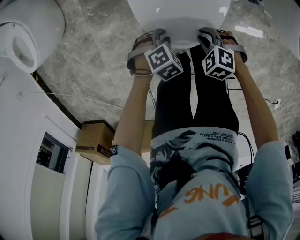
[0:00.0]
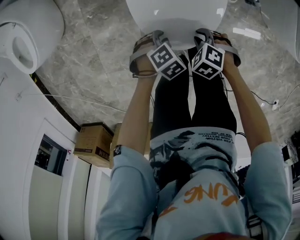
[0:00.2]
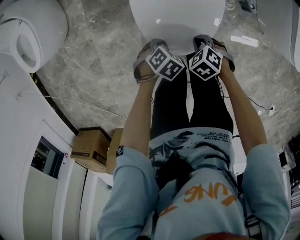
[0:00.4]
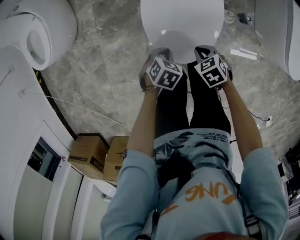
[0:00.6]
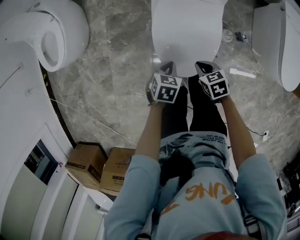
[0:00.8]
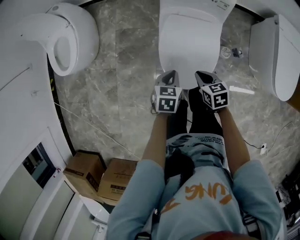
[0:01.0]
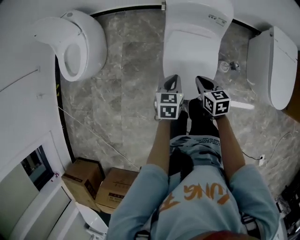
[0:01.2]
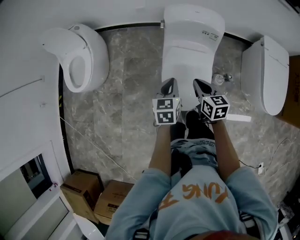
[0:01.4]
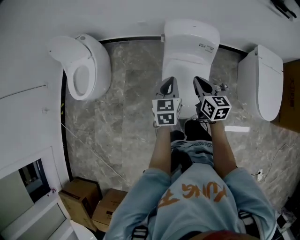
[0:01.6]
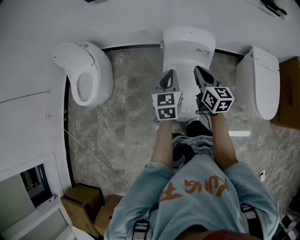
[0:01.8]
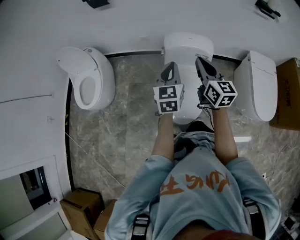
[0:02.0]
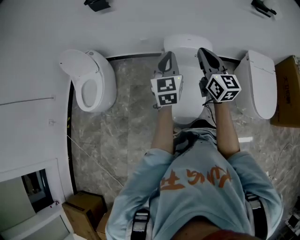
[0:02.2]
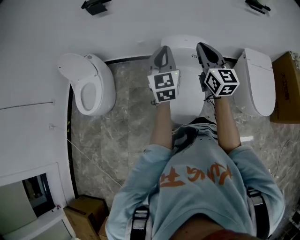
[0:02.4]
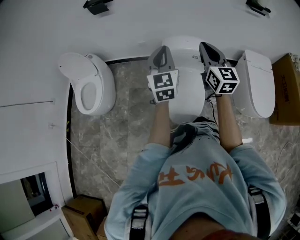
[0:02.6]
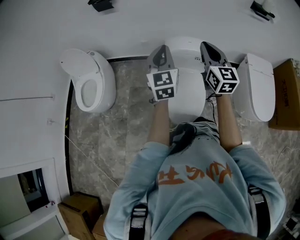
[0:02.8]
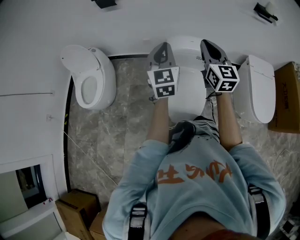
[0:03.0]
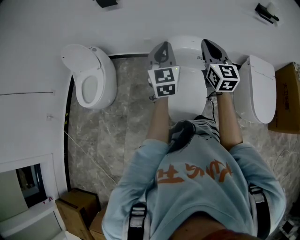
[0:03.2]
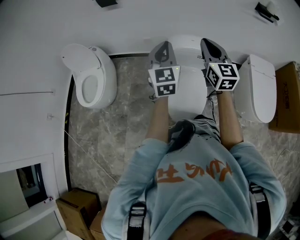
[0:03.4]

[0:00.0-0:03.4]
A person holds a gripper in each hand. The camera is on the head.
0:00.0 to 0:01.6: The grippers both shift upward by some 50 cm. The right gripper points its fingers approximately 50 degrees further upward. Meanwhile the left gripper points its fingers about 50 degrees further upward.
0:01.6 to 0:03.4: The grippers both shift upward by roughly 25 cm. The left gripper swivels about 30 degrees. Meanwhile the right gripper swivels about 30 degrees.

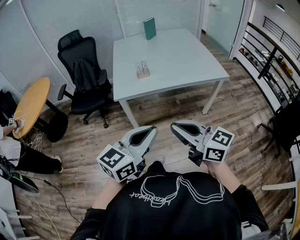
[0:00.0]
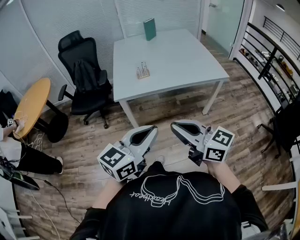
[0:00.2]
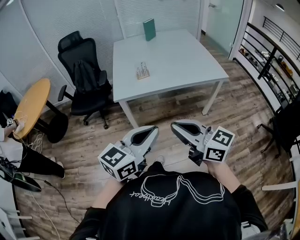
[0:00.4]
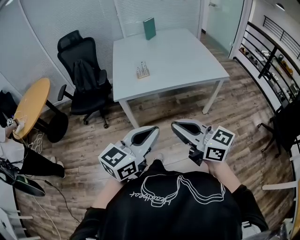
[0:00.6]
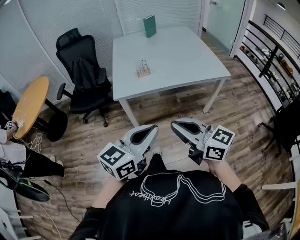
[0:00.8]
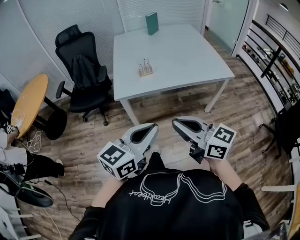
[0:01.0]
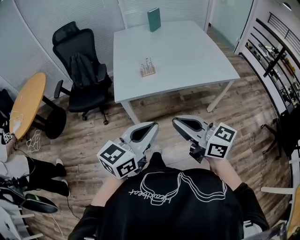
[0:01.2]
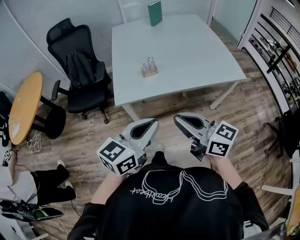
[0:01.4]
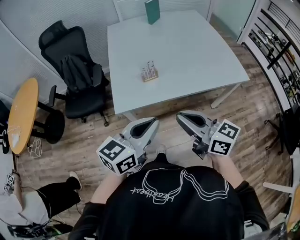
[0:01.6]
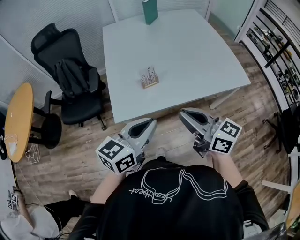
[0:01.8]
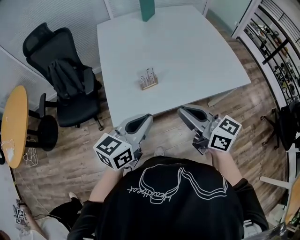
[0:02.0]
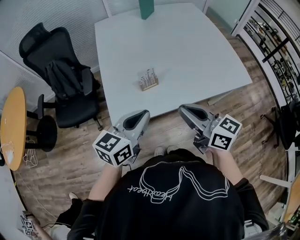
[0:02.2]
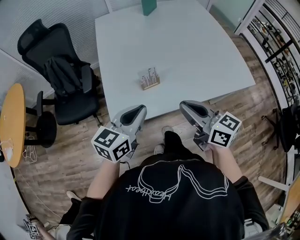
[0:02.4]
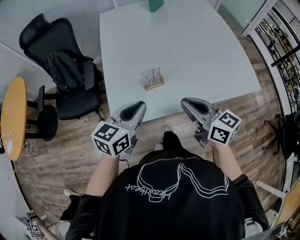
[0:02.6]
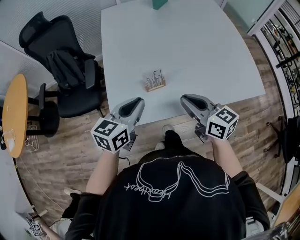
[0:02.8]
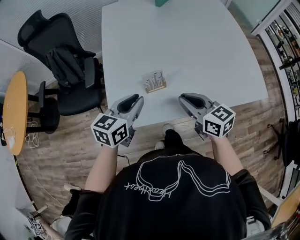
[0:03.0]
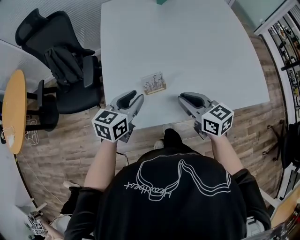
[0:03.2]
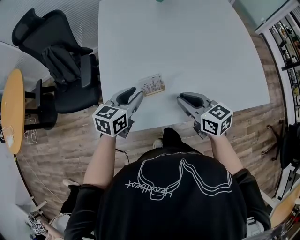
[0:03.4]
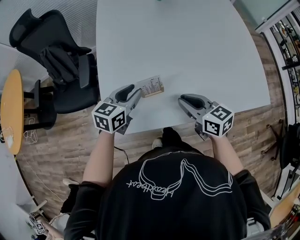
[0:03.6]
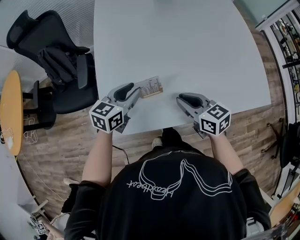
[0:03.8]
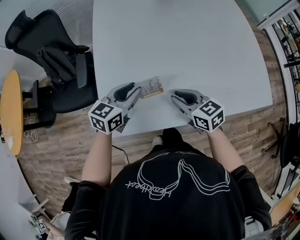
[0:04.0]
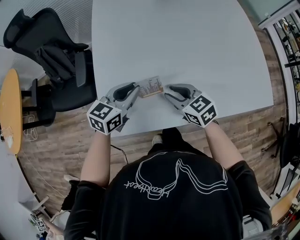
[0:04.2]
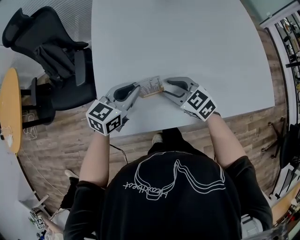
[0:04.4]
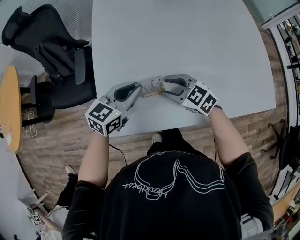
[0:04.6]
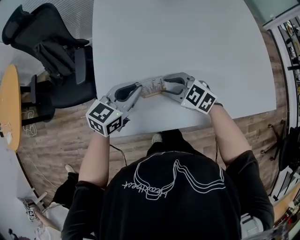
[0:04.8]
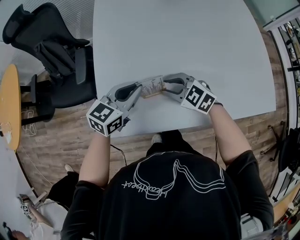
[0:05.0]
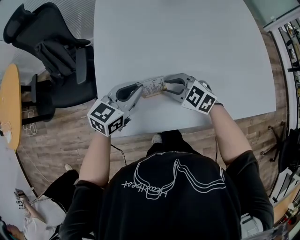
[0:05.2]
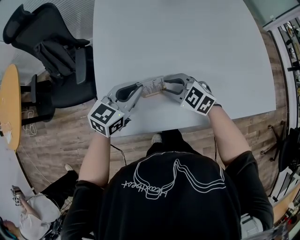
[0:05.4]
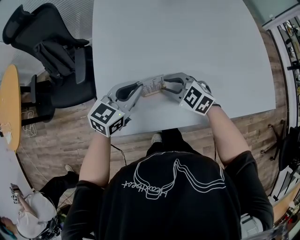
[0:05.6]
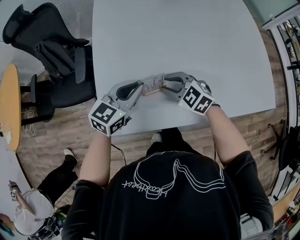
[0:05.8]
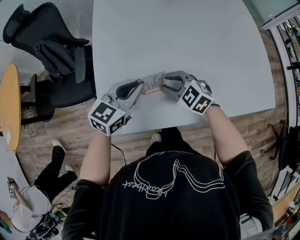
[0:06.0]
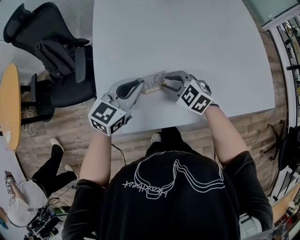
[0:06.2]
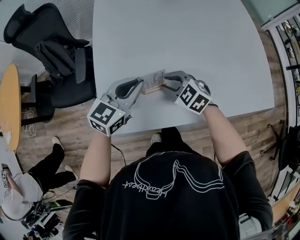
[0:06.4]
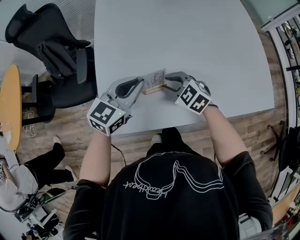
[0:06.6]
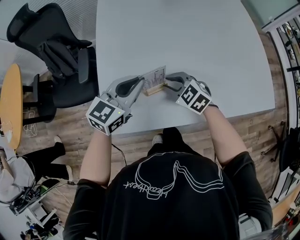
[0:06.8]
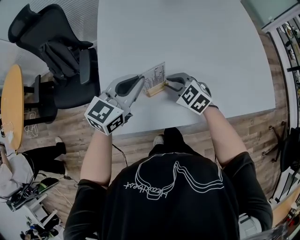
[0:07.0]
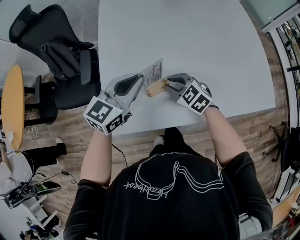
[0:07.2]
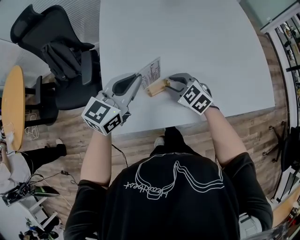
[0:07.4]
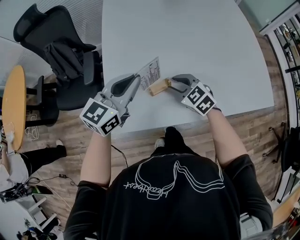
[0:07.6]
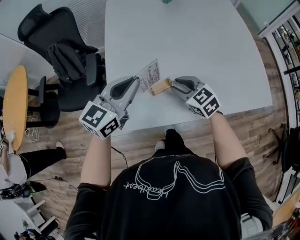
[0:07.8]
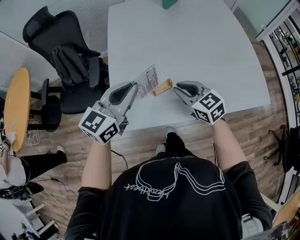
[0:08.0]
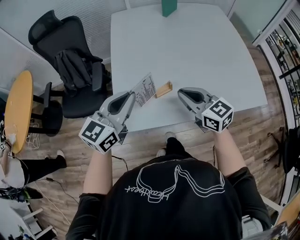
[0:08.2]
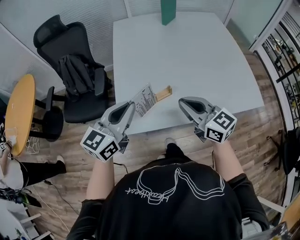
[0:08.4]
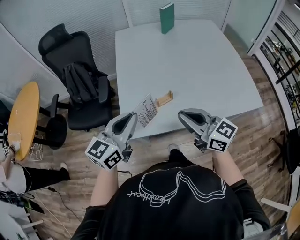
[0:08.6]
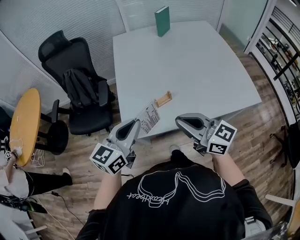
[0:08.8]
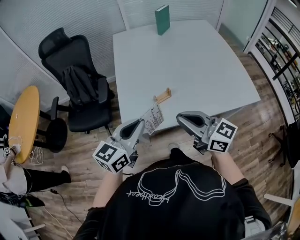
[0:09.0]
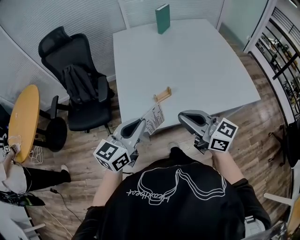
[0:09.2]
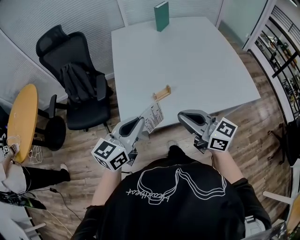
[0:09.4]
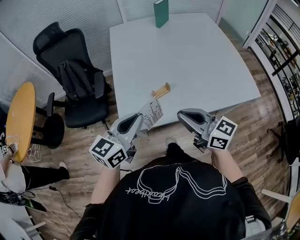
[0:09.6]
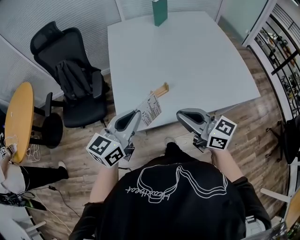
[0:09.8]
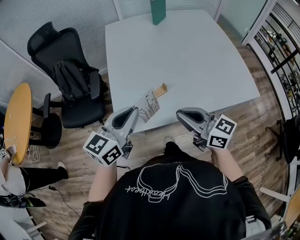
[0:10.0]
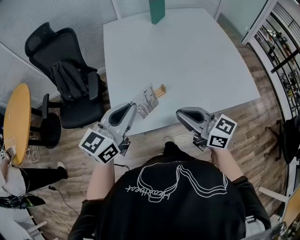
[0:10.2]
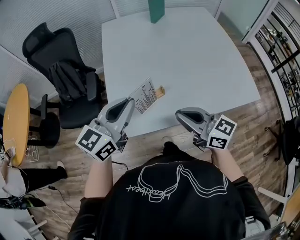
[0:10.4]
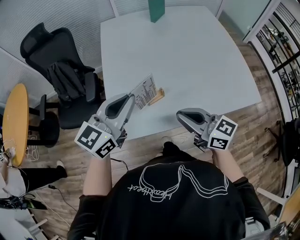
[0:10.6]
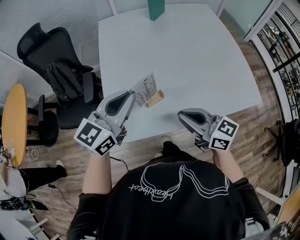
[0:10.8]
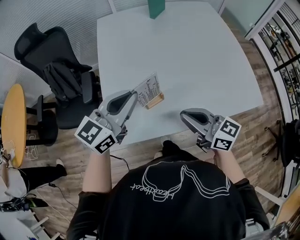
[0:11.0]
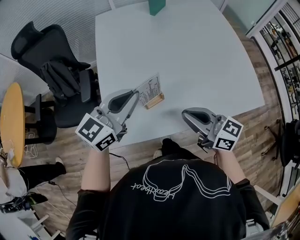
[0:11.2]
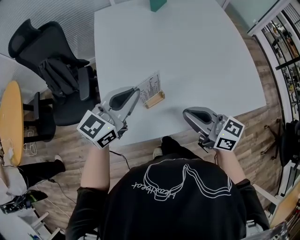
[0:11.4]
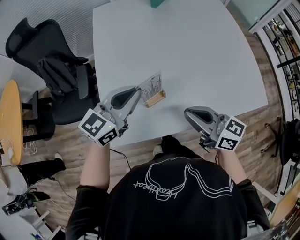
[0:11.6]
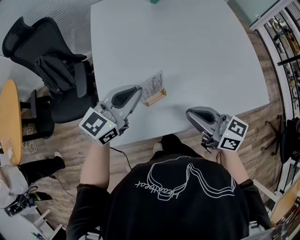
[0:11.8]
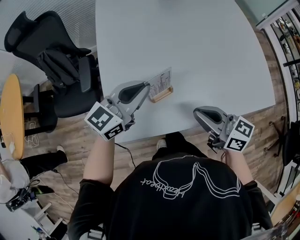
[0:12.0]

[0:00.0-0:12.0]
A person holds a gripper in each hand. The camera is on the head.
0:00.0 to 0:01.6: Both grippers travel together forward, about 25 cm.
0:01.6 to 0:03.0: Both grippers move forward and downward, about 30 cm.
0:03.0 to 0:04.4: The left gripper travels forward and downward by roughly 10 cm. The right gripper is displaced downward and forward by some 15 cm, turns by roughly 30 degrees, and opens up.
0:04.4 to 0:06.0: The grippers stay close to where they were, moving slightly.
0:06.0 to 0:07.6: The left gripper shifts about 10 cm upward.
0:07.6 to 0:09.0: The right gripper shifts roughly 30 cm backward and upward, tips its fingers upward by approximately 40 degrees, and closes up. Meanwhile the left gripper travels backward by approximately 20 cm.
0:09.0 to 0:10.4: The right gripper moves forward, approximately 5 cm. The left gripper goes about 10 cm forward.
0:10.4 to 0:12.0: The right gripper goes approximately 10 cm forward and downward. The left gripper travels forward and downward by approximately 15 cm.

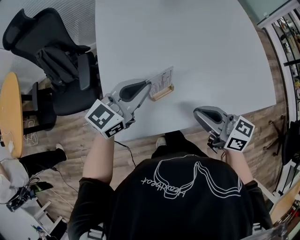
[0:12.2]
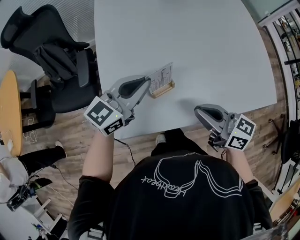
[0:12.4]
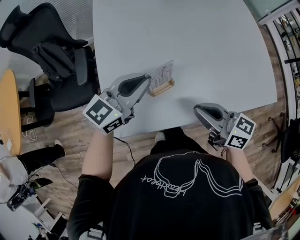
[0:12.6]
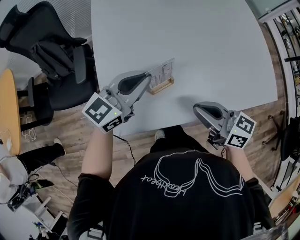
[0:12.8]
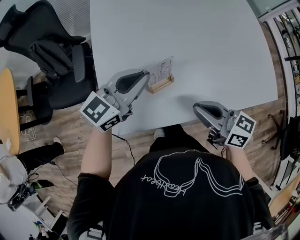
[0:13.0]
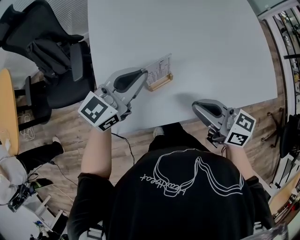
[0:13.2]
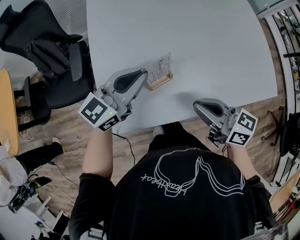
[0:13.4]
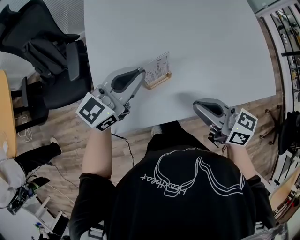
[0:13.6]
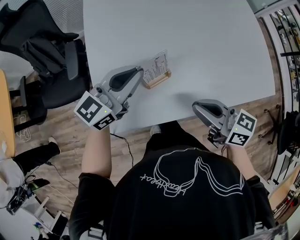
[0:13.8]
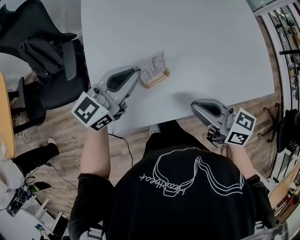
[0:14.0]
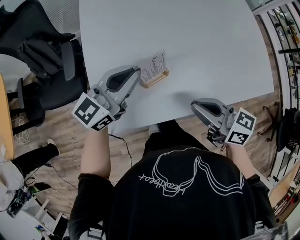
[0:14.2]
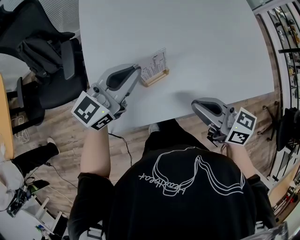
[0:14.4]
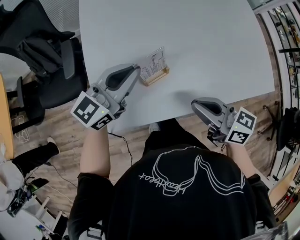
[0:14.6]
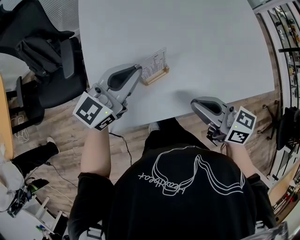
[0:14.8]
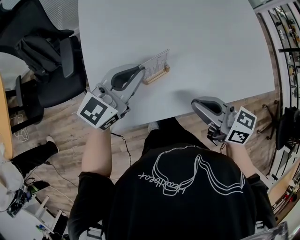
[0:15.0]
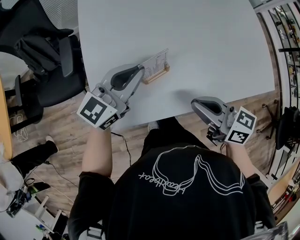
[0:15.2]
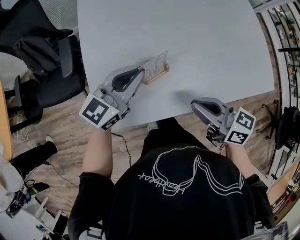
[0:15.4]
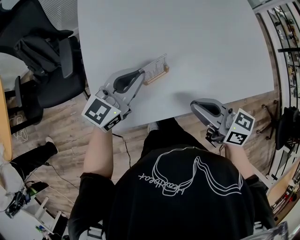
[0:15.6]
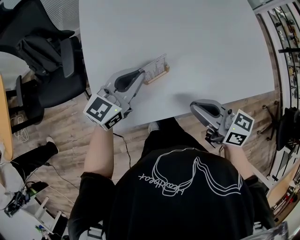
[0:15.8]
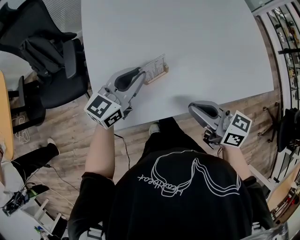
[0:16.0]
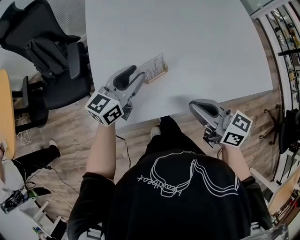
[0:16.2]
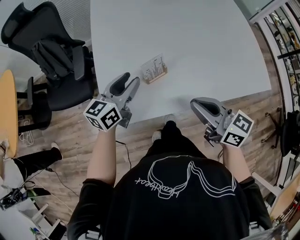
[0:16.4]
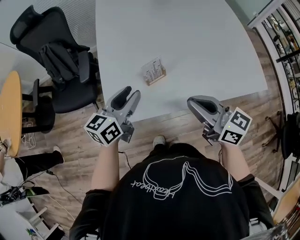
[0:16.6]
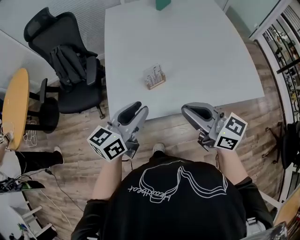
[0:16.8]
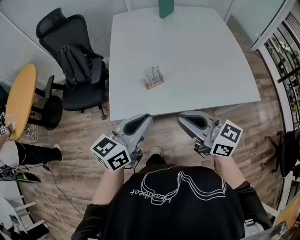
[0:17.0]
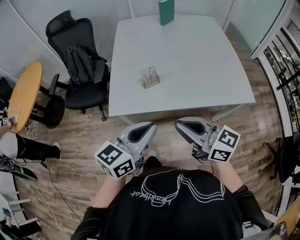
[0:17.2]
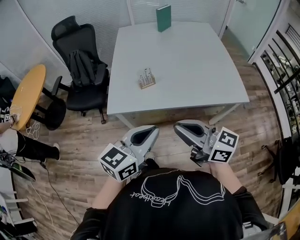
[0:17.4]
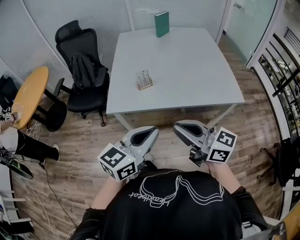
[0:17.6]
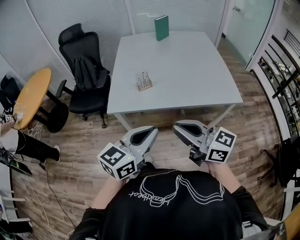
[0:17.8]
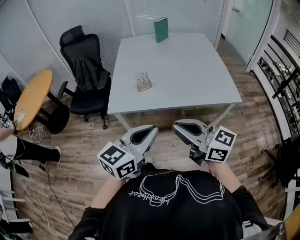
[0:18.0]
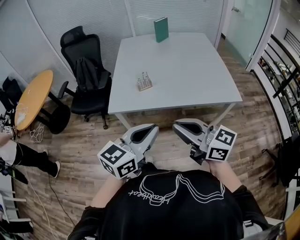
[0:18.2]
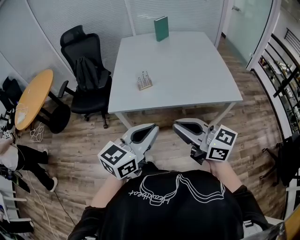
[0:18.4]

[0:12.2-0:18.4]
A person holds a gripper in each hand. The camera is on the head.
0:12.2 to 0:15.4: There are only small adjustments of the grippers.
0:15.4 to 0:16.8: The right gripper travels upward and backward by about 15 cm, and swivels approximately 20 degrees. Meanwhile the left gripper travels backward and upward by about 20 cm, turns by approximately 20 degrees, and opens its fingers.
0:16.8 to 0:18.4: Both grippers move backward, about 25 cm. The left gripper closes.

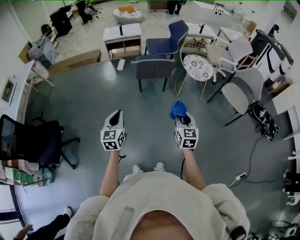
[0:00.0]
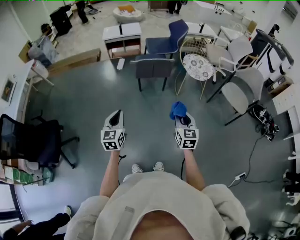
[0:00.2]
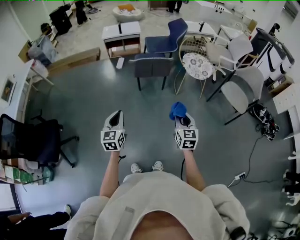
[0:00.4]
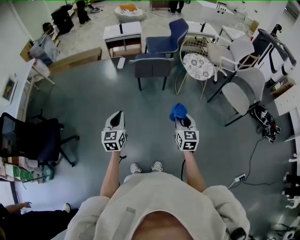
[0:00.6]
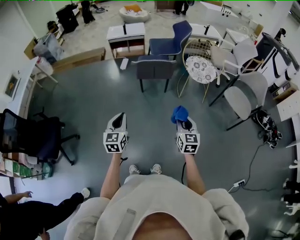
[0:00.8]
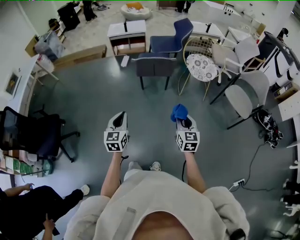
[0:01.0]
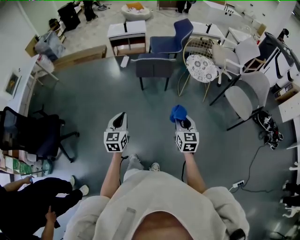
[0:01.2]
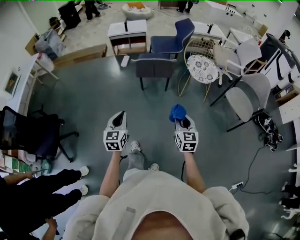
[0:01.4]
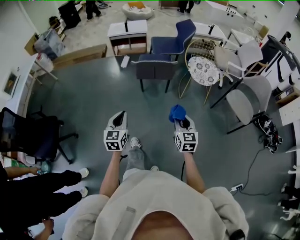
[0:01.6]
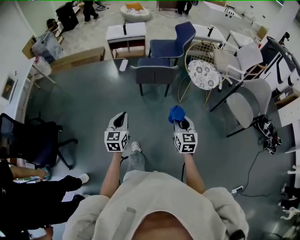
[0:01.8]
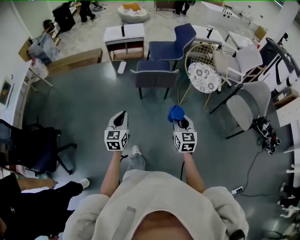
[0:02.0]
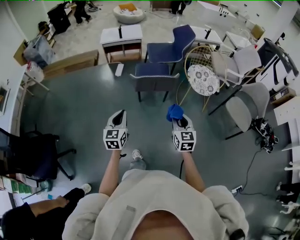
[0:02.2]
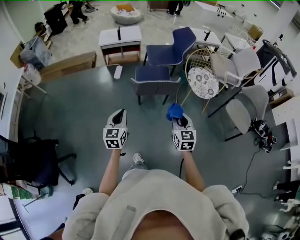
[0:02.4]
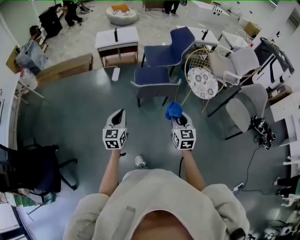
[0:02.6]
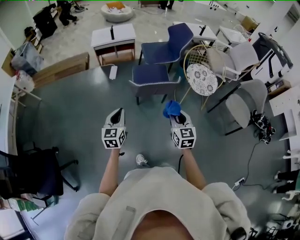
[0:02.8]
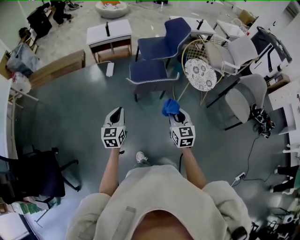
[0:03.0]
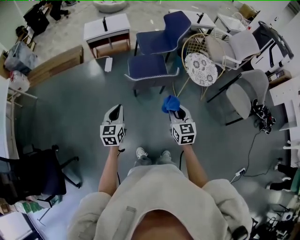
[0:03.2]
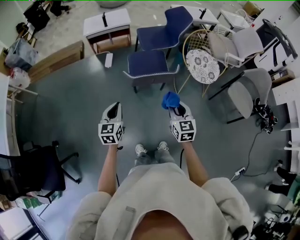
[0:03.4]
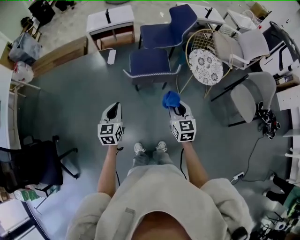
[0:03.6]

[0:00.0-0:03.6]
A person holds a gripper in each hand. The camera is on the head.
0:00.0 to 0:01.8: The right gripper moves forward, approximately 10 cm. The left gripper travels forward and to the right by about 10 cm.
0:01.8 to 0:03.6: Both grippers travel together forward, roughly 25 cm.
